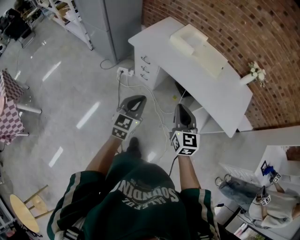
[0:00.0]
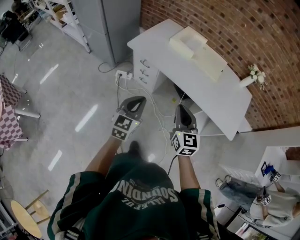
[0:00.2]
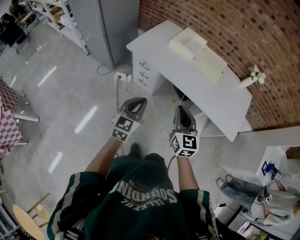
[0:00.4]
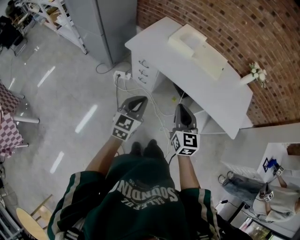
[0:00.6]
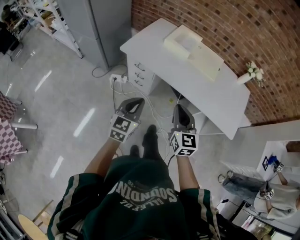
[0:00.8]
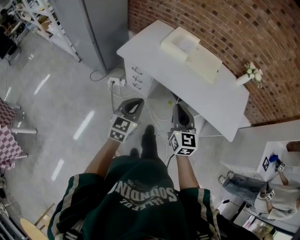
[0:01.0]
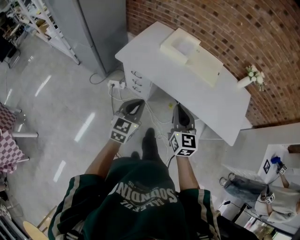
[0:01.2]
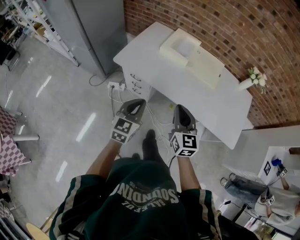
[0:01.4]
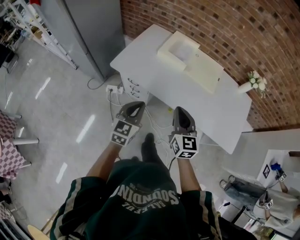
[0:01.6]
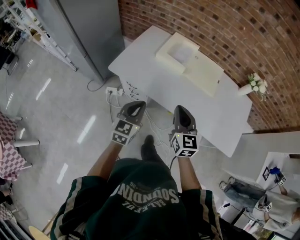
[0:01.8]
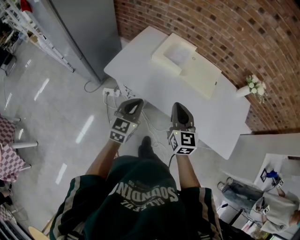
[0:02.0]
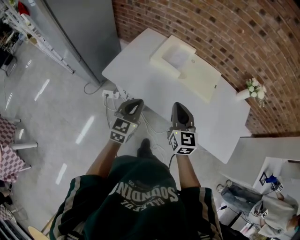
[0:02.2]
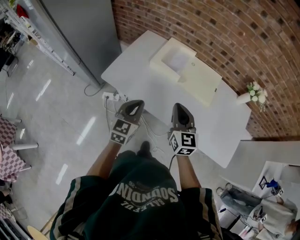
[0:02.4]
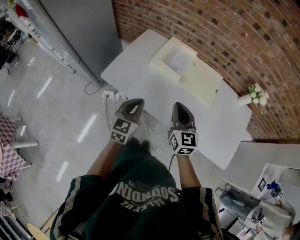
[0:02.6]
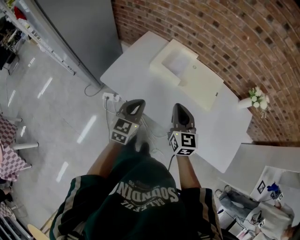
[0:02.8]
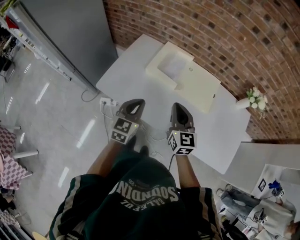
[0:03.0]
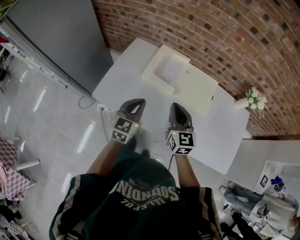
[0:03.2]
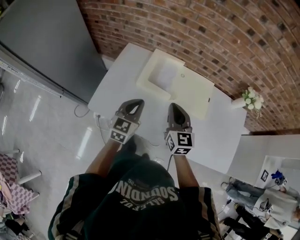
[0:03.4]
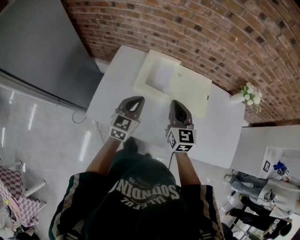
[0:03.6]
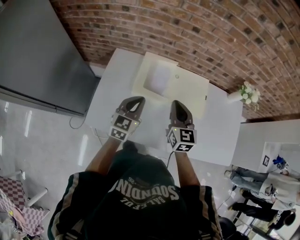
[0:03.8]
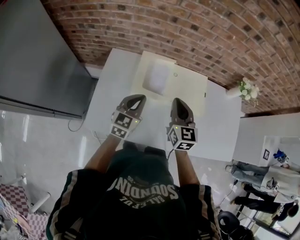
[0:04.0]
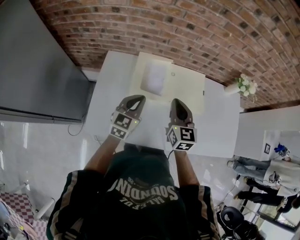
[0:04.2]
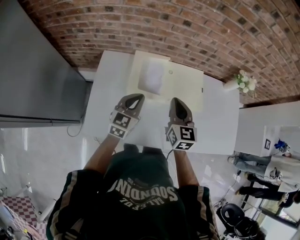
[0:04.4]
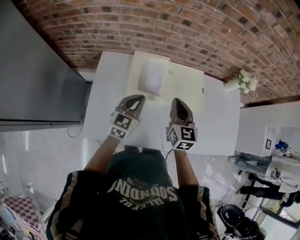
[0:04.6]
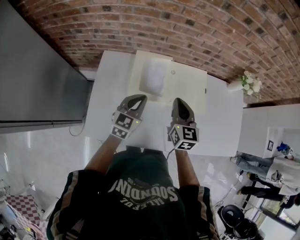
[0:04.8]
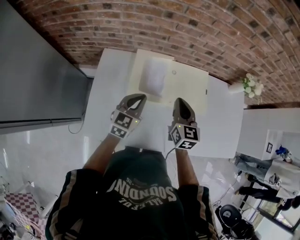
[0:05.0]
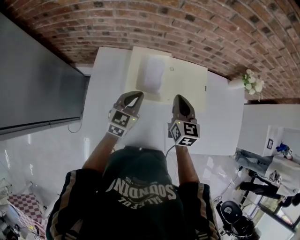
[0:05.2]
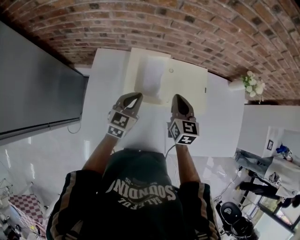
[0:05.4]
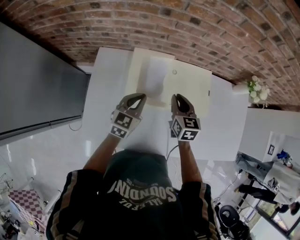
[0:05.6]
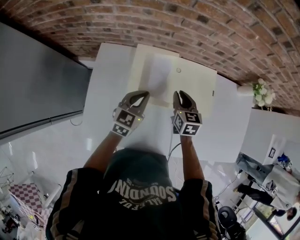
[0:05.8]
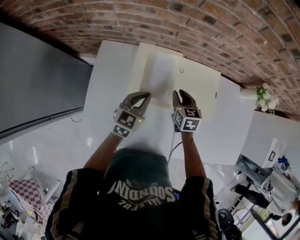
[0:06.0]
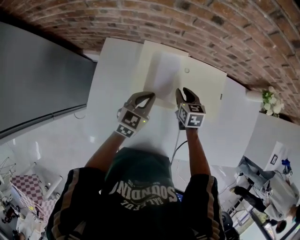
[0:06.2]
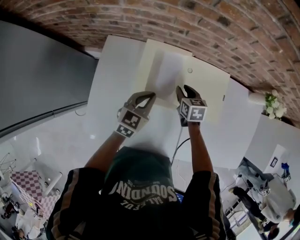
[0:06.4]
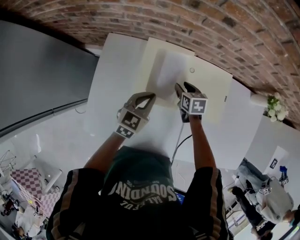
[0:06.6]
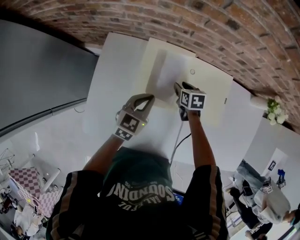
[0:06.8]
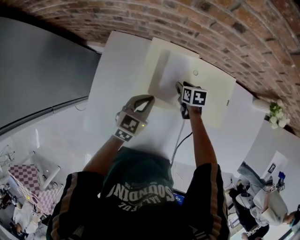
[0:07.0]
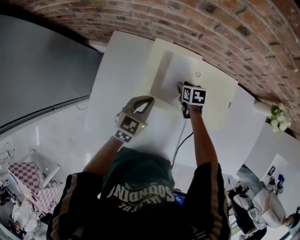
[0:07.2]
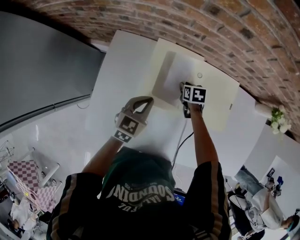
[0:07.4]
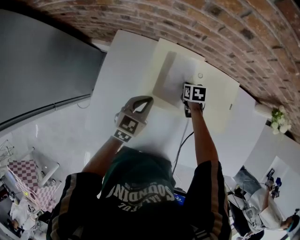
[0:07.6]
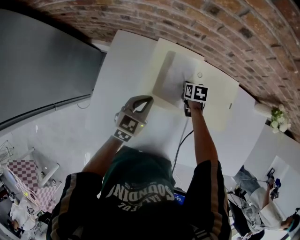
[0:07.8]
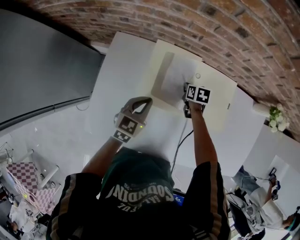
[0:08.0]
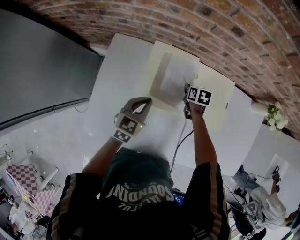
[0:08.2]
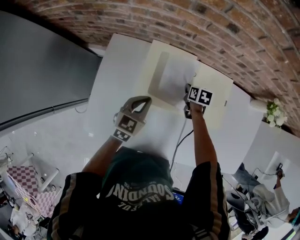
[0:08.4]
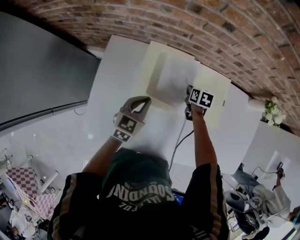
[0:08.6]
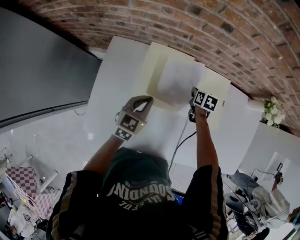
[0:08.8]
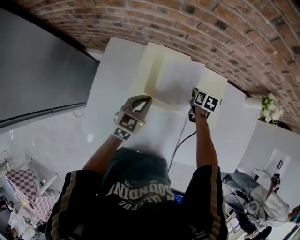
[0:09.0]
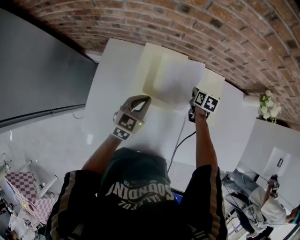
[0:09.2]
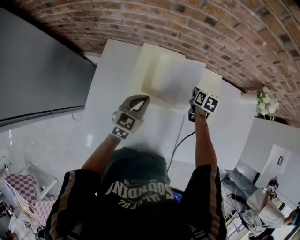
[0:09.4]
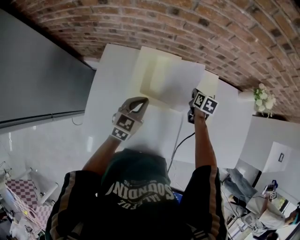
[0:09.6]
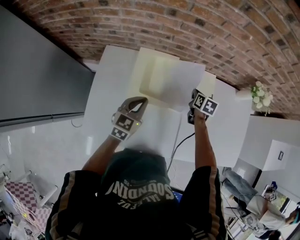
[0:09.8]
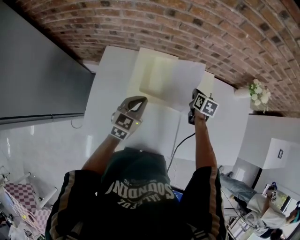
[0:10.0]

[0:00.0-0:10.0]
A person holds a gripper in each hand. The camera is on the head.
0.0 to 1.4 s: Both grippers move forward, approximately 20 cm.
1.4 to 2.8 s: The grippers both shift forward by about 20 cm.
2.8 to 4.2 s: The right gripper shifts by approximately 20 cm, and changes its angle by approximately 30 degrees. Meanwhile the left gripper moves some 25 cm, and changes its angle by roughly 30 degrees.
4.2 to 5.8 s: The left gripper goes some 15 cm forward and downward. Meanwhile the right gripper is displaced downward and forward by roughly 20 cm, and turns by about 20 degrees.
5.8 to 7.2 s: The right gripper travels downward and forward by roughly 20 cm, and changes its angle by roughly 30 degrees, while the left gripper travels downward by approximately 5 cm.
7.2 to 8.6 s: The right gripper travels to the right by roughly 5 cm, and closes its fingers.
8.6 to 10.0 s: The right gripper shifts some 15 cm upward and to the right; the left gripper shifts about 5 cm upward.

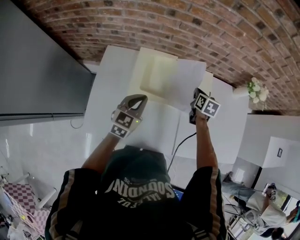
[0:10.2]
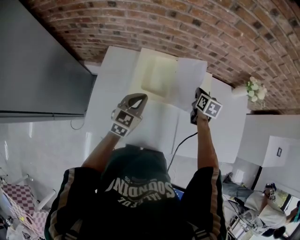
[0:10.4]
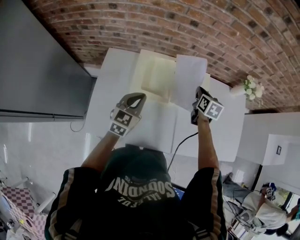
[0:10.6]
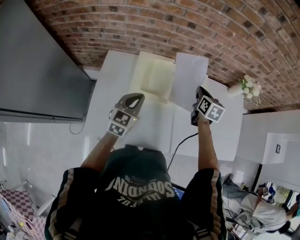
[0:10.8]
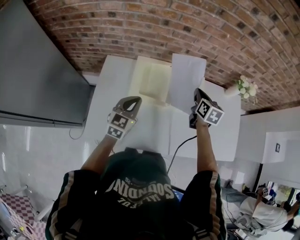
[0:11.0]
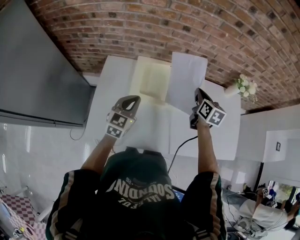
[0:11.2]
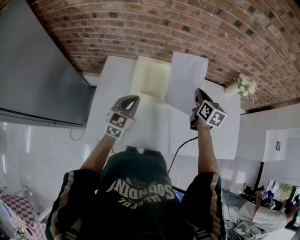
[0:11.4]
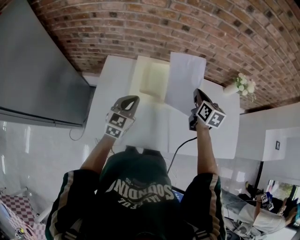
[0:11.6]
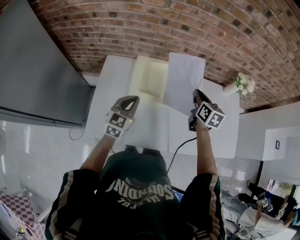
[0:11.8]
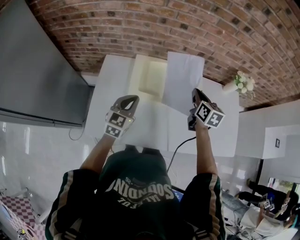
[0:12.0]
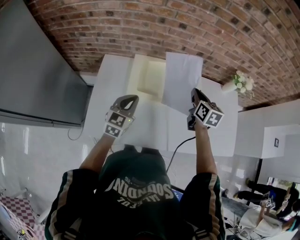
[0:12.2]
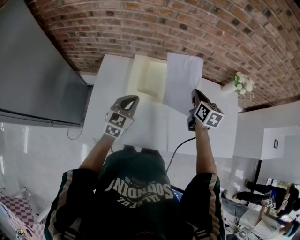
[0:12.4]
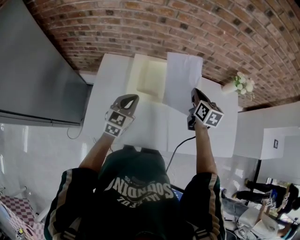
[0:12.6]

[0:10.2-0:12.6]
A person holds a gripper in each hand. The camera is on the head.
10.2 to 11.4 s: The right gripper goes about 15 cm upward and backward. Meanwhile the left gripper ends up roughly 5 cm from where it was.
11.4 to 12.6 s: The grippers move only a little.

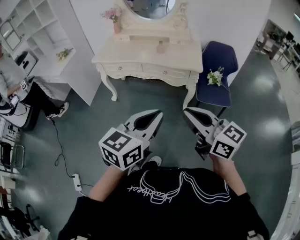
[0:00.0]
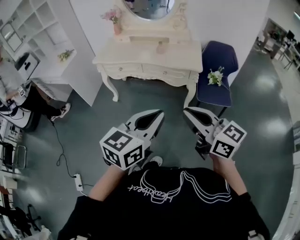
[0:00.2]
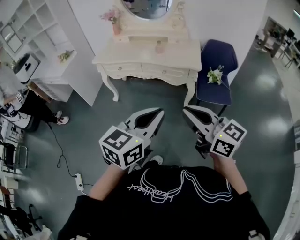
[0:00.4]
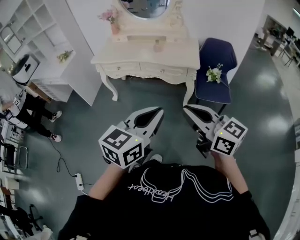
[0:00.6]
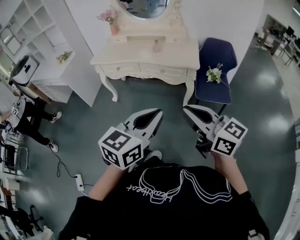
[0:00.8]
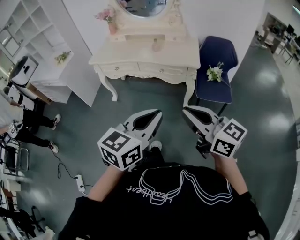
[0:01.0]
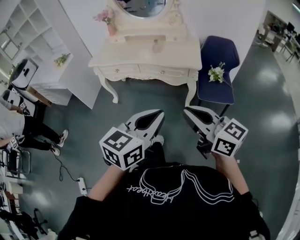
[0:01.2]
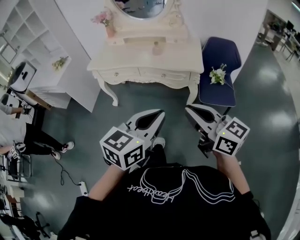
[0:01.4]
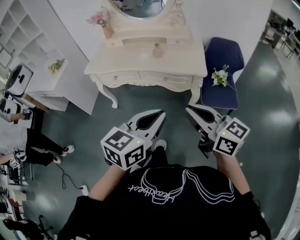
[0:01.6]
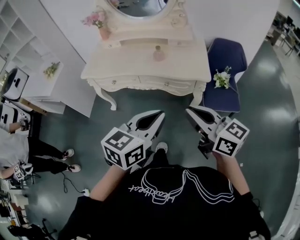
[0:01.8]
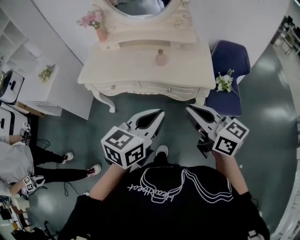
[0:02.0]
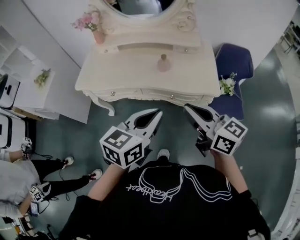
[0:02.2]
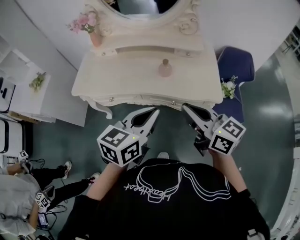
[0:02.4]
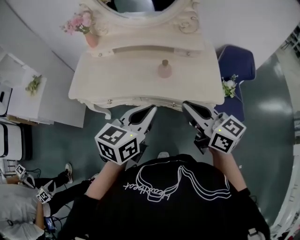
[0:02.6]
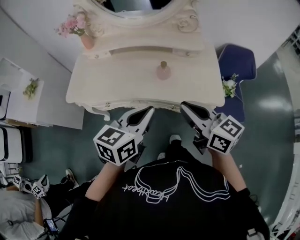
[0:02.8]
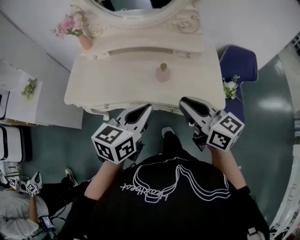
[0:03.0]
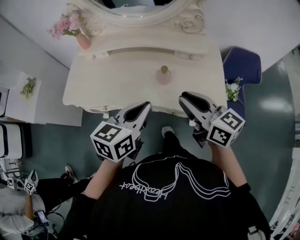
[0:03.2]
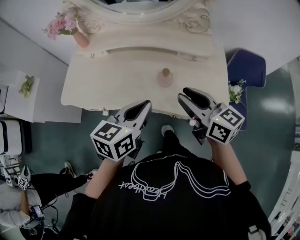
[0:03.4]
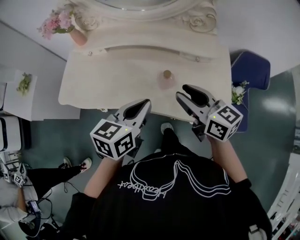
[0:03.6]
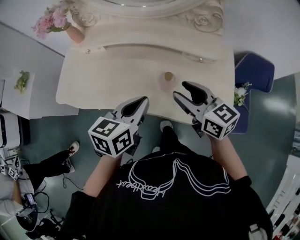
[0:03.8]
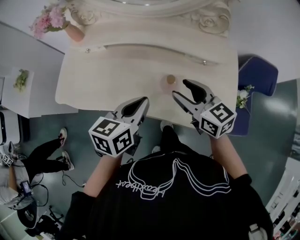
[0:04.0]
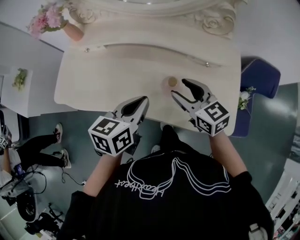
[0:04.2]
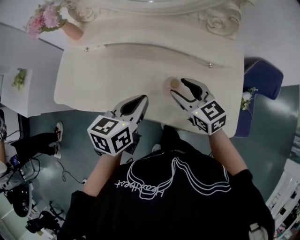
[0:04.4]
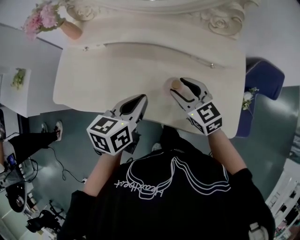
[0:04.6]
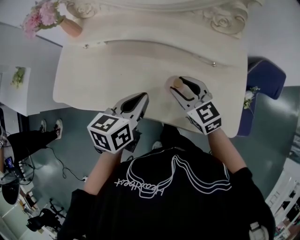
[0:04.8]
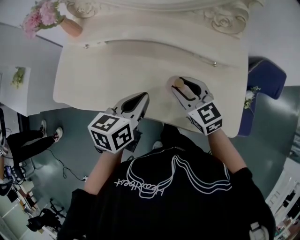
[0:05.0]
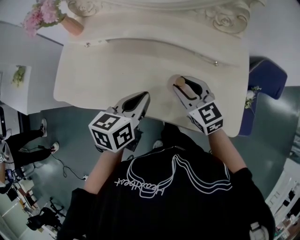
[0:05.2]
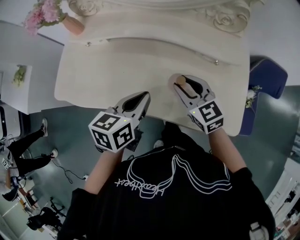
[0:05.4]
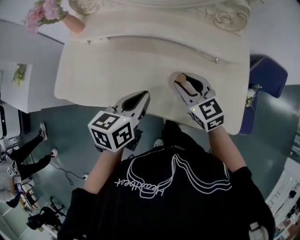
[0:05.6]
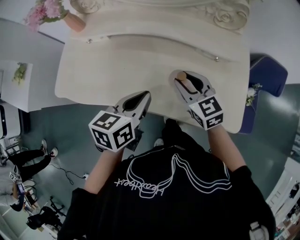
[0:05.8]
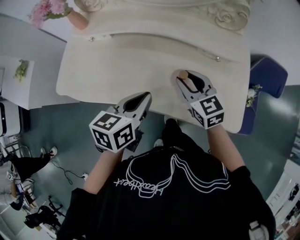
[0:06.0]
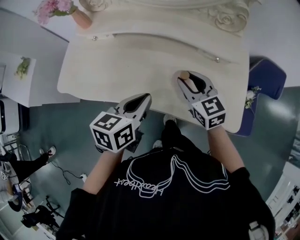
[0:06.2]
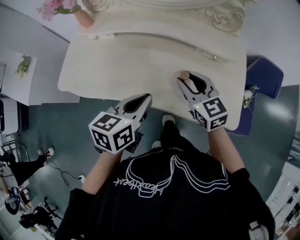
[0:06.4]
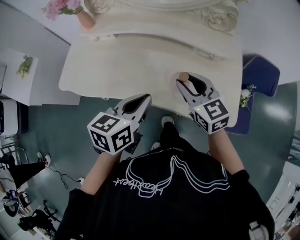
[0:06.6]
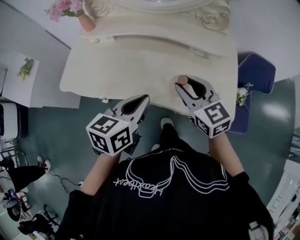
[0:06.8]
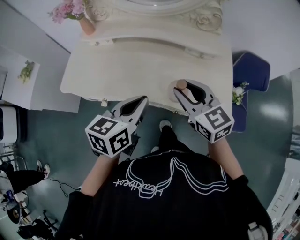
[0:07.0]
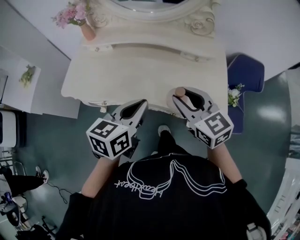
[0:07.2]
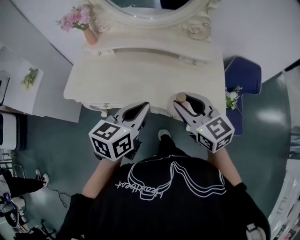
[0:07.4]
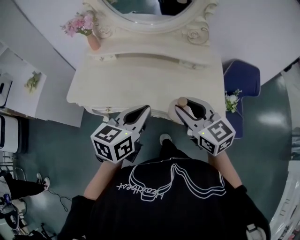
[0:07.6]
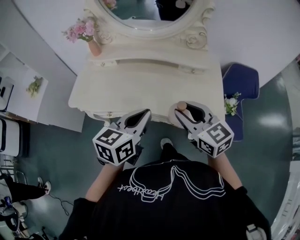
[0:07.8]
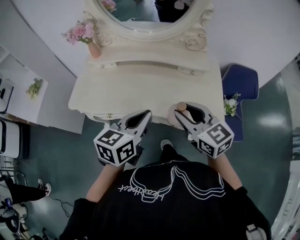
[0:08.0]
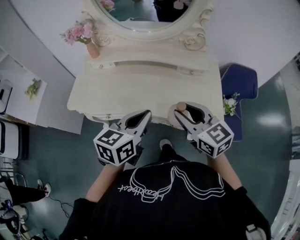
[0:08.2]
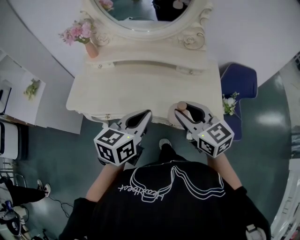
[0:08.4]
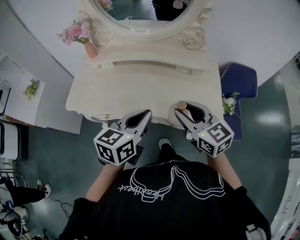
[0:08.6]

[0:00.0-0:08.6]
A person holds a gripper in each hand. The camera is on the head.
0.0 to 1.4 s: Both grippers move forward, about 5 cm.
1.4 to 2.8 s: The pair of grippers is taken forward, approximately 40 cm.
2.8 to 4.4 s: The two grippers go some 25 cm forward and downward. The right gripper rotates approximately 30 degrees, and opens its fingers.
4.4 to 5.8 s: The grippers move only a little.
5.8 to 7.2 s: Both grippers travel together backward and upward, roughly 15 cm.
7.2 to 8.6 s: The grippers stay close to where they were, moving slightly.

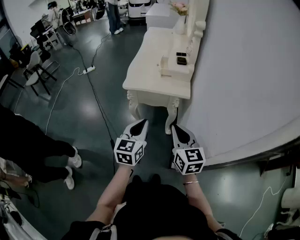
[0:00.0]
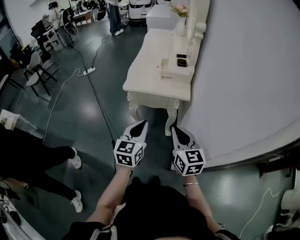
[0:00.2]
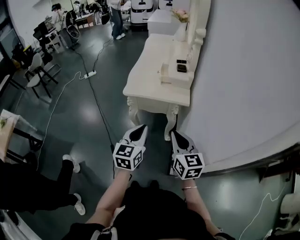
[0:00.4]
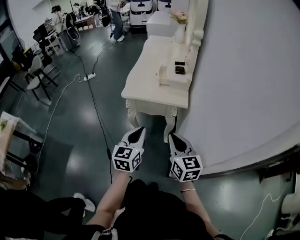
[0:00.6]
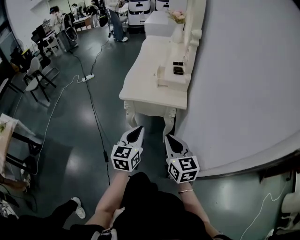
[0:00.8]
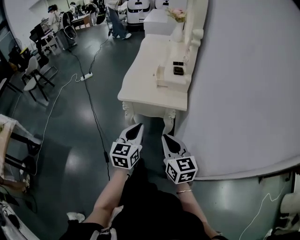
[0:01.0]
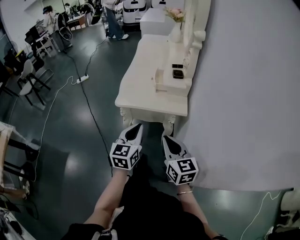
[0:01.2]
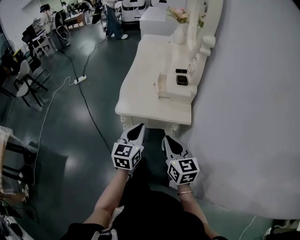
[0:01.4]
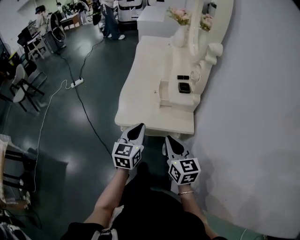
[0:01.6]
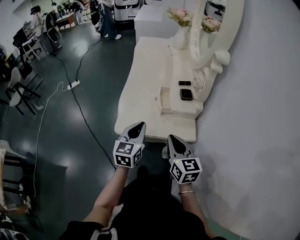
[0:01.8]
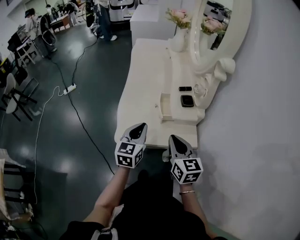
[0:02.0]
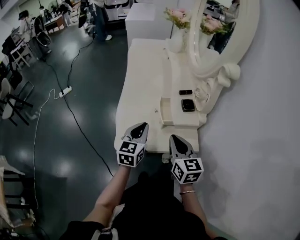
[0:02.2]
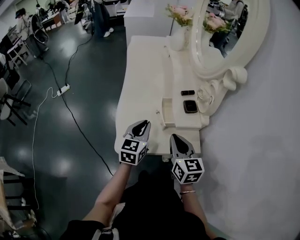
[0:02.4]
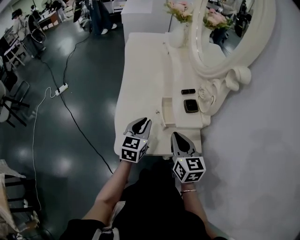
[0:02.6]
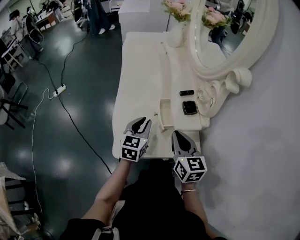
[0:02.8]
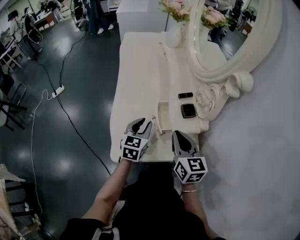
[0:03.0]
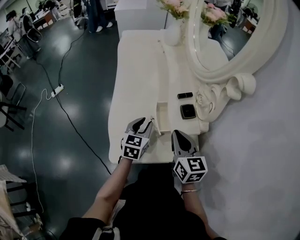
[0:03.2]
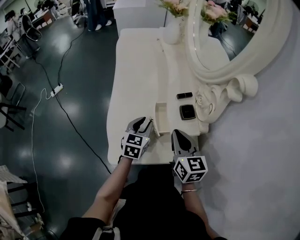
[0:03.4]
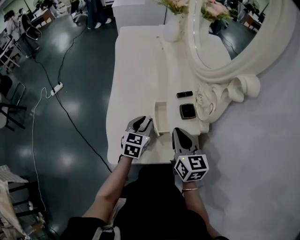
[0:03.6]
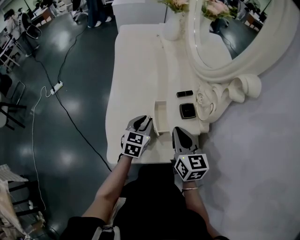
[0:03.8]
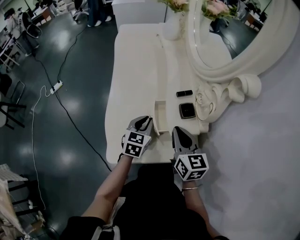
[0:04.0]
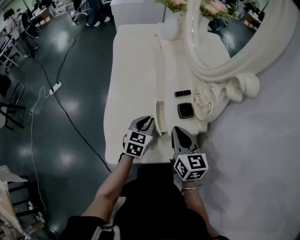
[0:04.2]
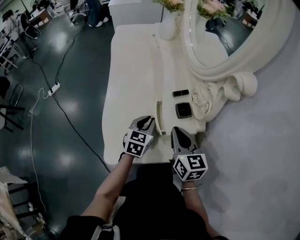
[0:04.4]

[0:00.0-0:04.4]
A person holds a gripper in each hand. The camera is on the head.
0.0 to 1.4 s: Both grippers move forward, about 15 cm.
1.4 to 3.0 s: The two grippers go approximately 25 cm forward. The left gripper opens.
3.0 to 4.4 s: The left gripper shifts about 5 cm to the right.
